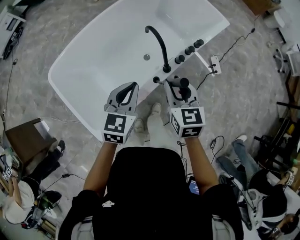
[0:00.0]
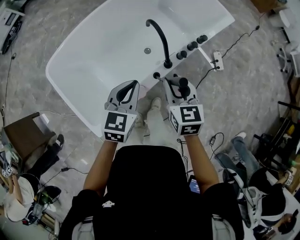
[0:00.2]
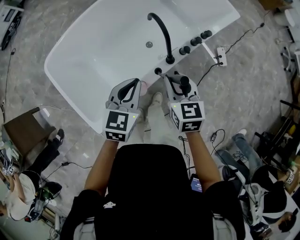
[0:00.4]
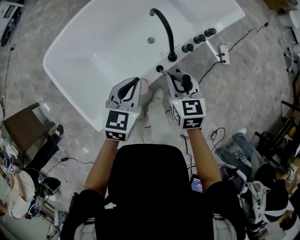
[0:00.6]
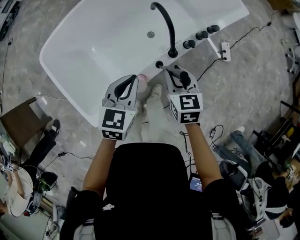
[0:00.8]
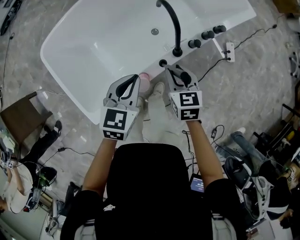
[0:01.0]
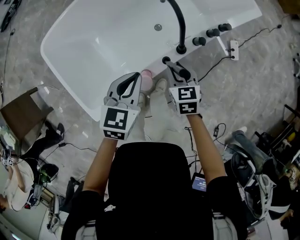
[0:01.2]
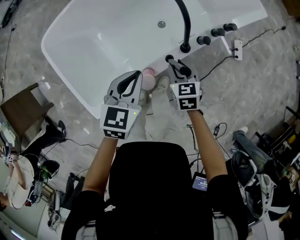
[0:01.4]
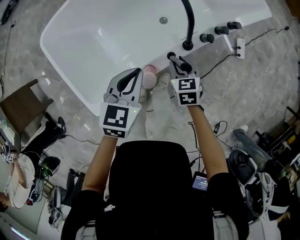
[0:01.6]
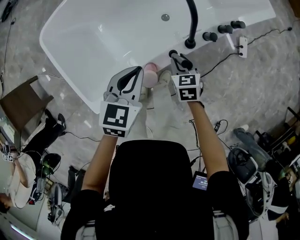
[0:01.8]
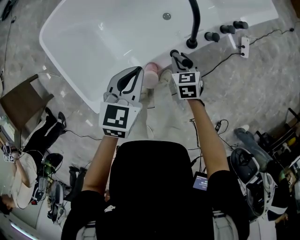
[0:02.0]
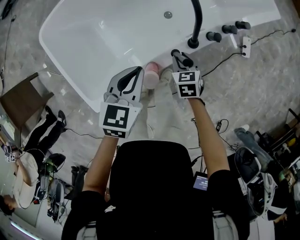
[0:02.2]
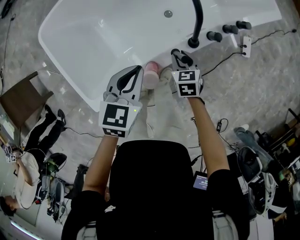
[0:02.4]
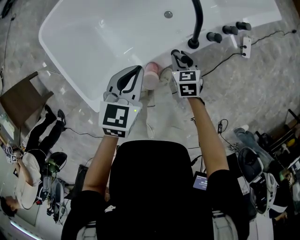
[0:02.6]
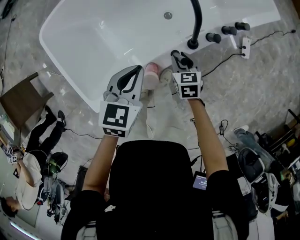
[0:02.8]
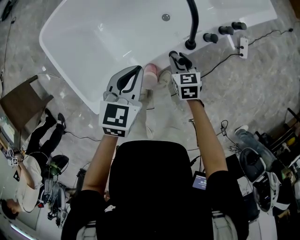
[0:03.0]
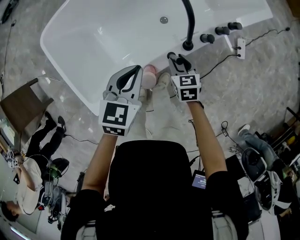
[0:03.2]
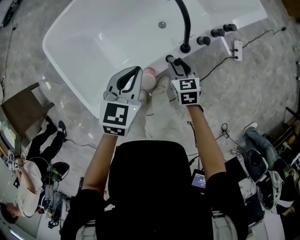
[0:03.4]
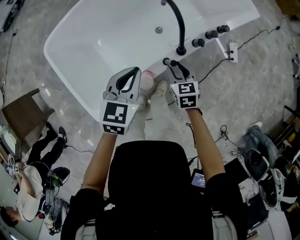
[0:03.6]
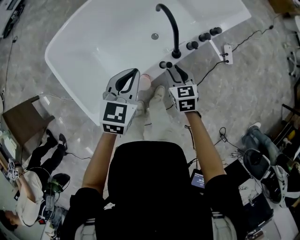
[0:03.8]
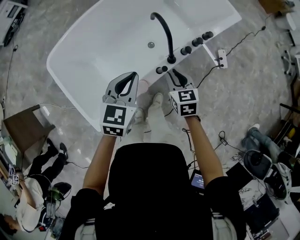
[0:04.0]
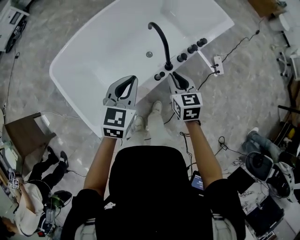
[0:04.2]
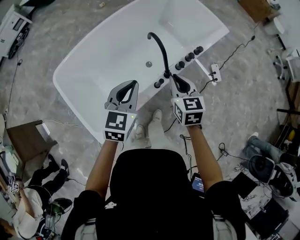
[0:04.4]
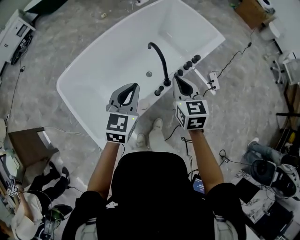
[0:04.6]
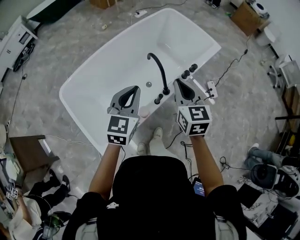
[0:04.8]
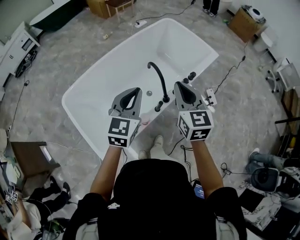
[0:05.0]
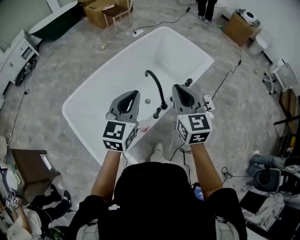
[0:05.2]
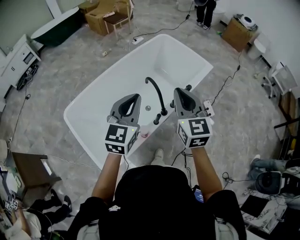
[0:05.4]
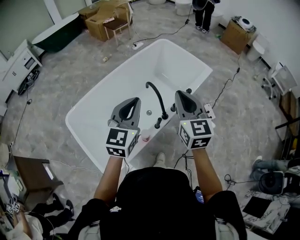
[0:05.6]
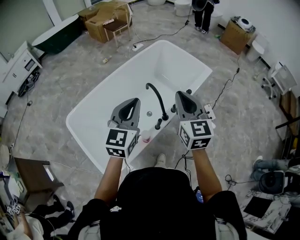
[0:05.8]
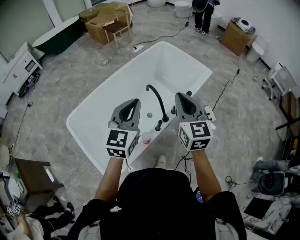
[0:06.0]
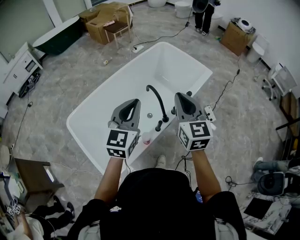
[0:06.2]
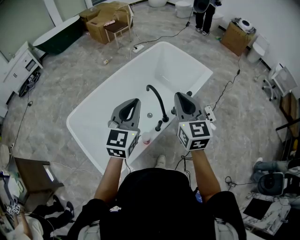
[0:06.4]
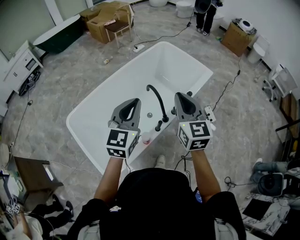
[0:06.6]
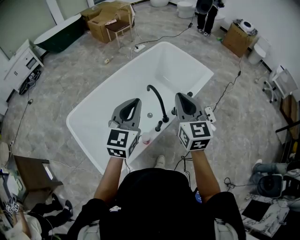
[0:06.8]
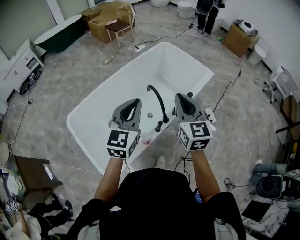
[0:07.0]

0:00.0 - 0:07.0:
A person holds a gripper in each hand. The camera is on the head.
0:00.0 - 0:01.4: The right gripper heads downward, covering about 25 cm, and swivels about 20 degrees; the left gripper is displaced downward by about 10 cm.
0:01.4 - 0:02.8: The right gripper is displaced downward by roughly 10 cm.
0:02.8 - 0:04.2: The right gripper travels upward by roughly 25 cm; the left gripper shifts approximately 15 cm upward.
0:04.2 - 0:05.6: The two grippers go about 25 cm upward. The left gripper changes its angle by about 20 degrees. The right gripper rotates some 30 degrees.
0:05.6 - 0:07.0: The grippers move only a little.

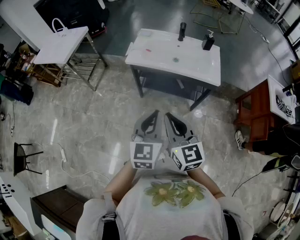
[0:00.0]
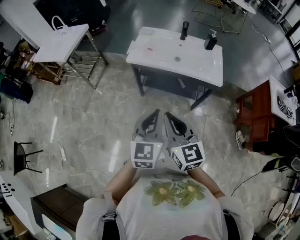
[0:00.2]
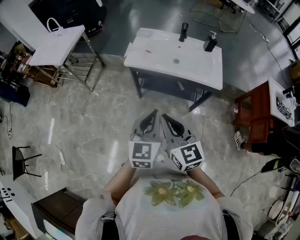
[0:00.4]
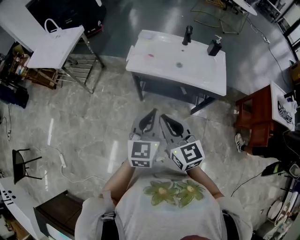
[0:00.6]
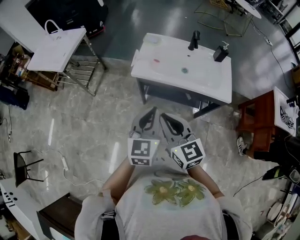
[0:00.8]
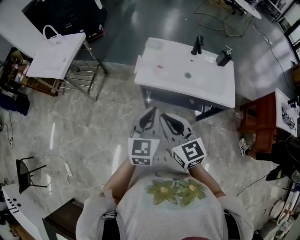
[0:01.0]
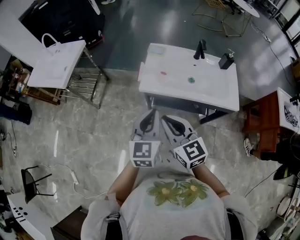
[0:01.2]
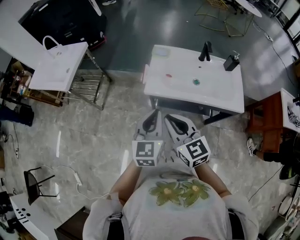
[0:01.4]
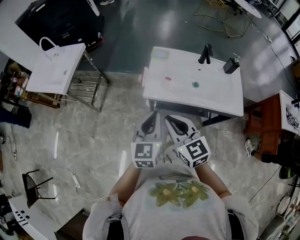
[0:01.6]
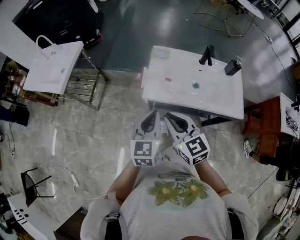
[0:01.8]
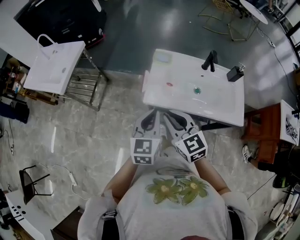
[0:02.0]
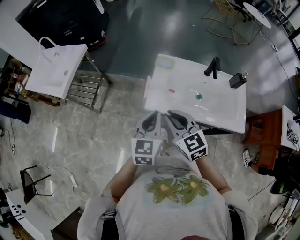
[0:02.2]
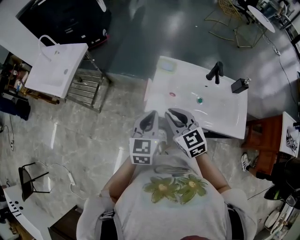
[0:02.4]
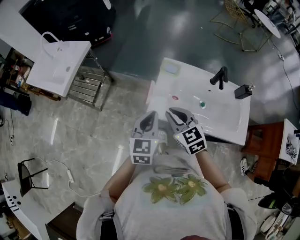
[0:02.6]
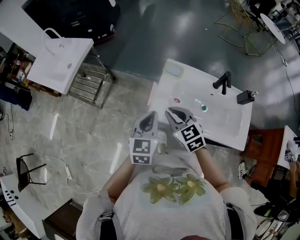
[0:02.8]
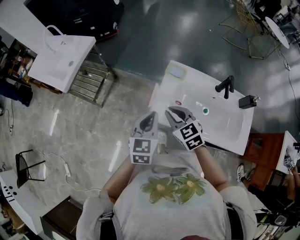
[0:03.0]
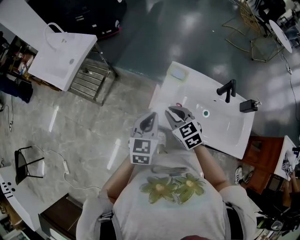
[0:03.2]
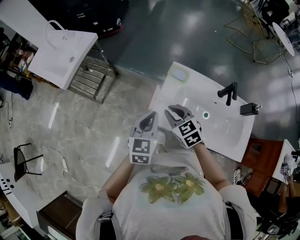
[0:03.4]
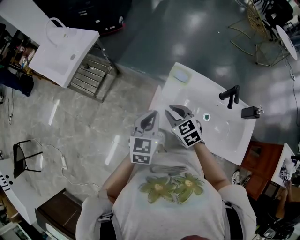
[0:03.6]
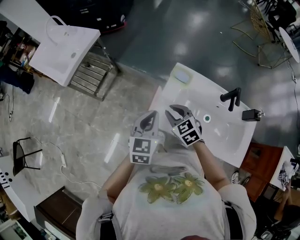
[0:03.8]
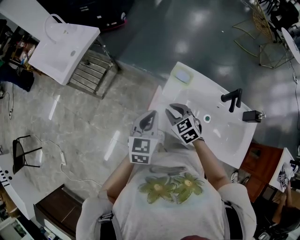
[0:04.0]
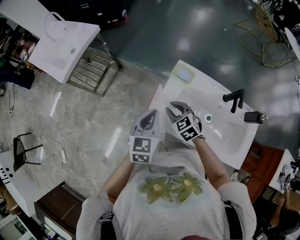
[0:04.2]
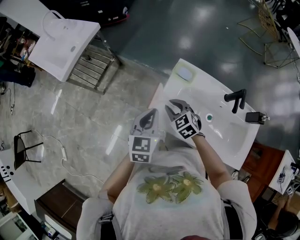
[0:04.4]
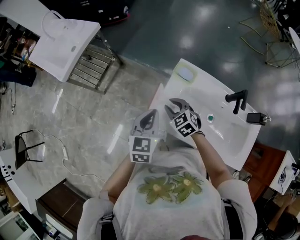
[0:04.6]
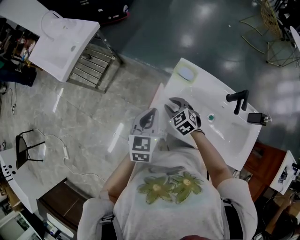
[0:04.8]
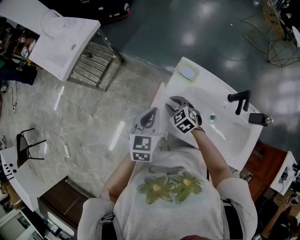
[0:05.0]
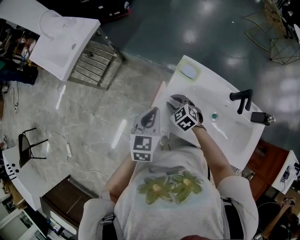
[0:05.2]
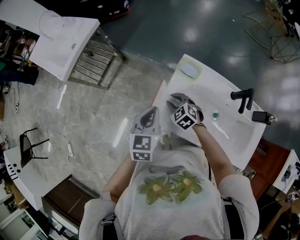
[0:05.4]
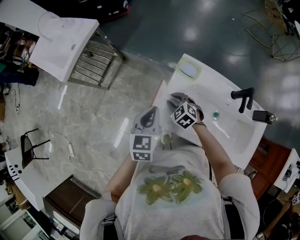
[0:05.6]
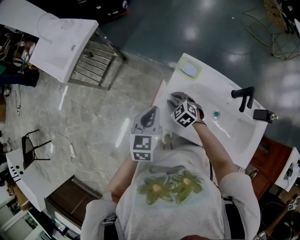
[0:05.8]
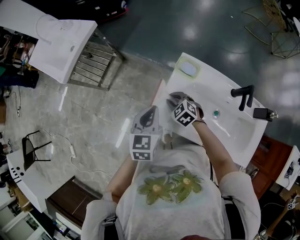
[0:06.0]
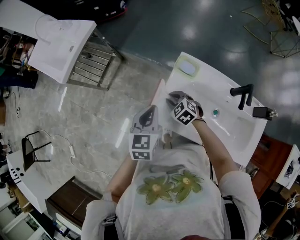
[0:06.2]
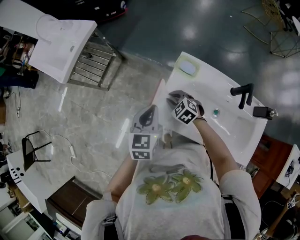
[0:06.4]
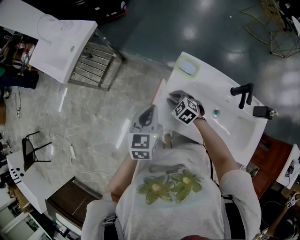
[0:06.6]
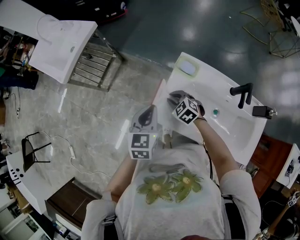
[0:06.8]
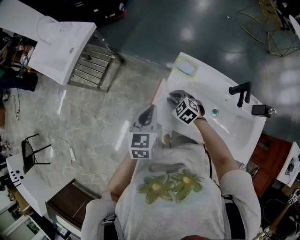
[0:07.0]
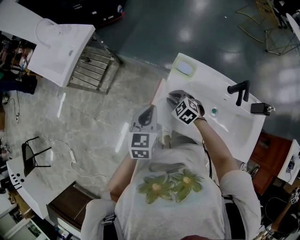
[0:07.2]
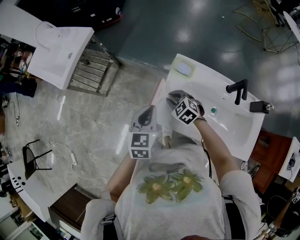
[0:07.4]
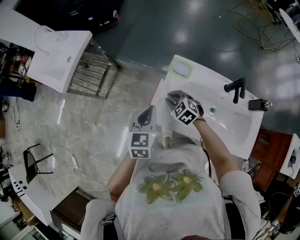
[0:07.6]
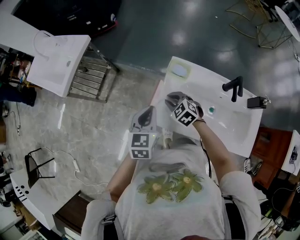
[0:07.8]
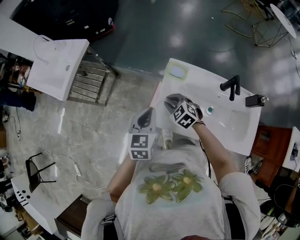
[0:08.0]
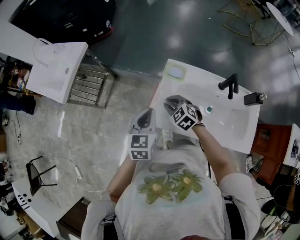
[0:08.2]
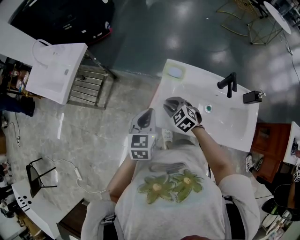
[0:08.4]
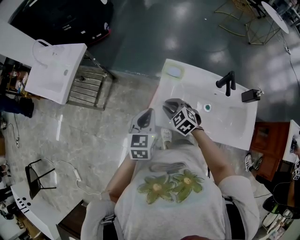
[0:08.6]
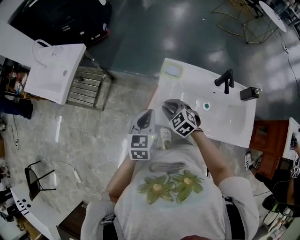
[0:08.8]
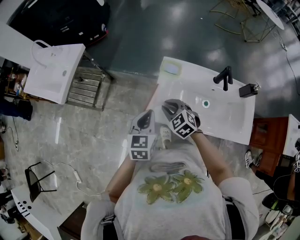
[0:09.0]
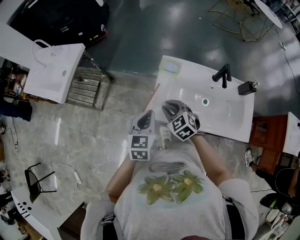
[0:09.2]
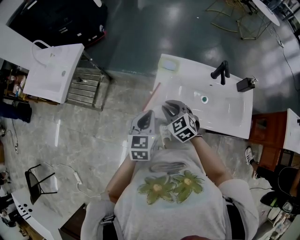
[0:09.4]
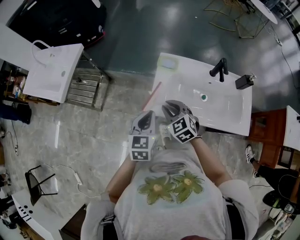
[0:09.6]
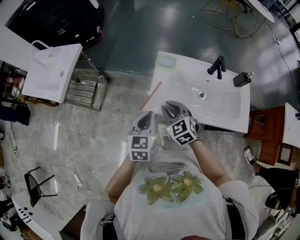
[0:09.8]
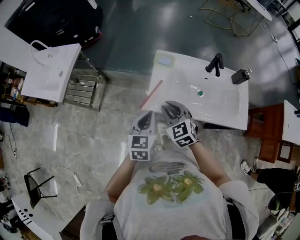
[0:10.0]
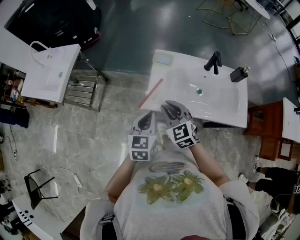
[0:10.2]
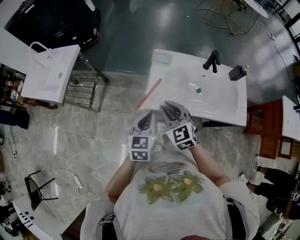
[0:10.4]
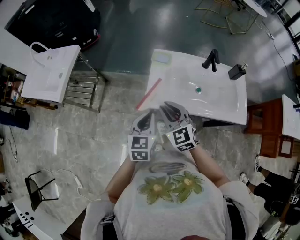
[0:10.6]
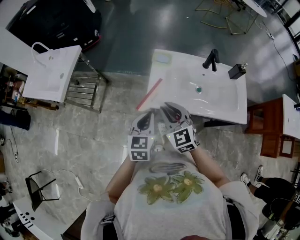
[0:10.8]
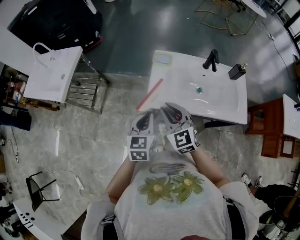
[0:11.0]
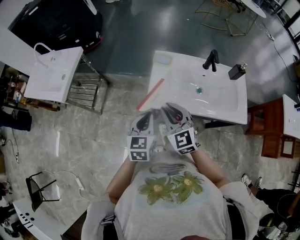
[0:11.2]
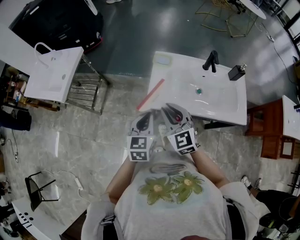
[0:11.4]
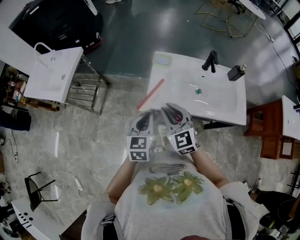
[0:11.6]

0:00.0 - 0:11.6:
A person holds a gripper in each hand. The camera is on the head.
0:00.0 - 0:01.4: The two grippers go some 30 cm forward and to the left.
0:01.4 - 0:02.8: The left gripper goes roughly 15 cm forward; the right gripper heads forward and downward, covering roughly 20 cm, and rotates about 20 degrees.
0:02.8 - 0:04.4: The right gripper shifts roughly 15 cm downward and forward. Meanwhile the left gripper goes some 5 cm forward.
0:04.4 - 0:05.8: The right gripper goes about 5 cm downward.
0:05.8 - 0:07.2: There are only small adjustments of the grippers.
0:07.2 - 0:08.8: The right gripper heads upward, covering about 10 cm.
0:08.8 - 0:10.2: The left gripper travels backward by roughly 10 cm. Meanwhile the right gripper travels backward and upward by some 15 cm, and swivels approximately 20 degrees.
0:10.2 - 0:11.6: The right gripper changes place by some 5 cm.

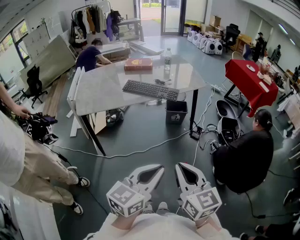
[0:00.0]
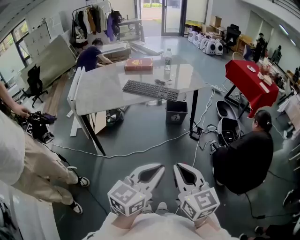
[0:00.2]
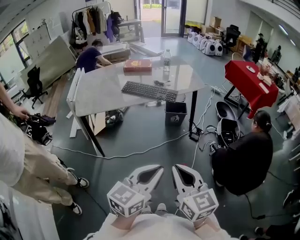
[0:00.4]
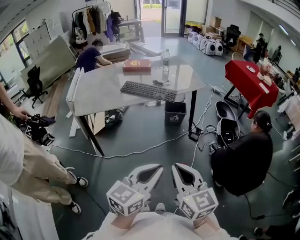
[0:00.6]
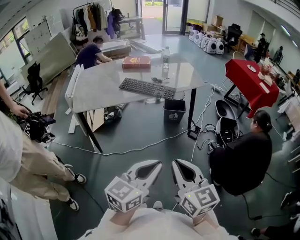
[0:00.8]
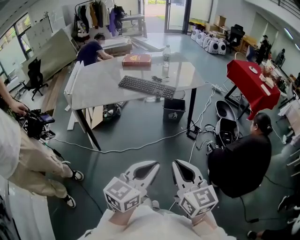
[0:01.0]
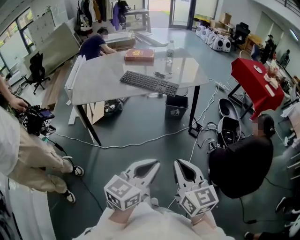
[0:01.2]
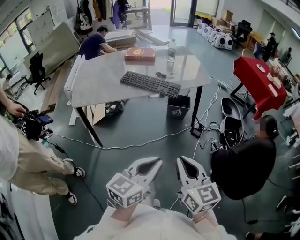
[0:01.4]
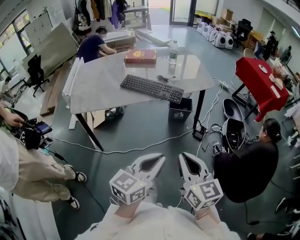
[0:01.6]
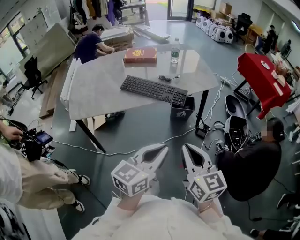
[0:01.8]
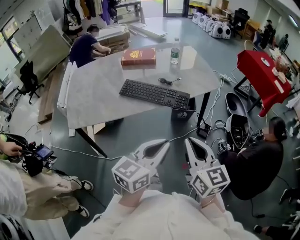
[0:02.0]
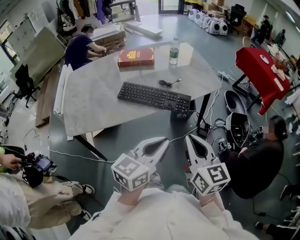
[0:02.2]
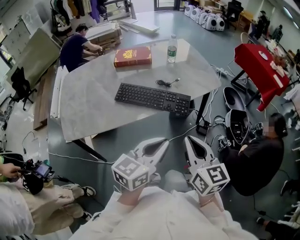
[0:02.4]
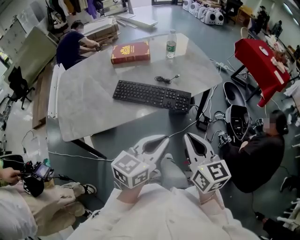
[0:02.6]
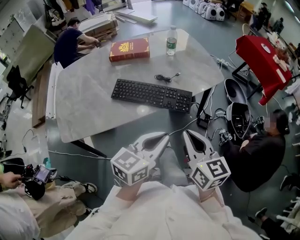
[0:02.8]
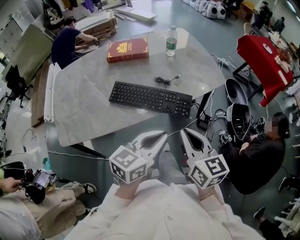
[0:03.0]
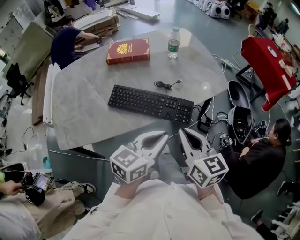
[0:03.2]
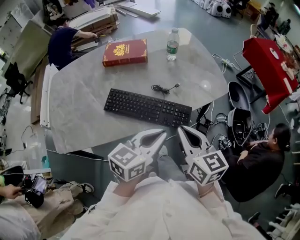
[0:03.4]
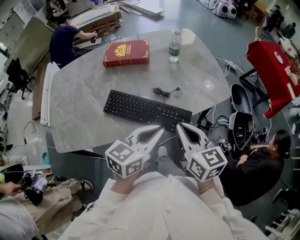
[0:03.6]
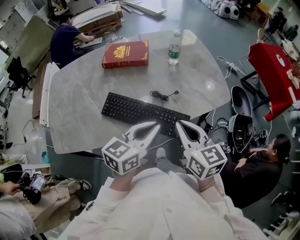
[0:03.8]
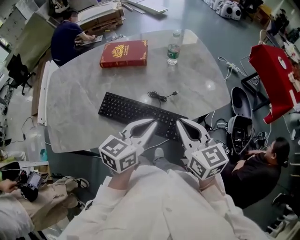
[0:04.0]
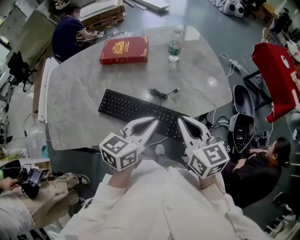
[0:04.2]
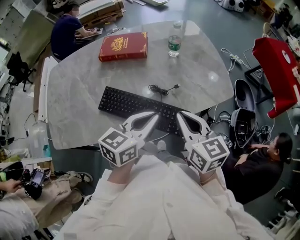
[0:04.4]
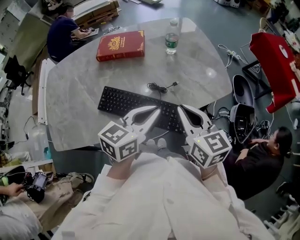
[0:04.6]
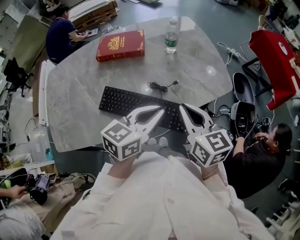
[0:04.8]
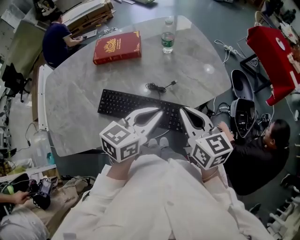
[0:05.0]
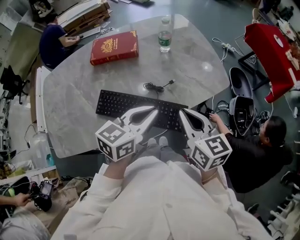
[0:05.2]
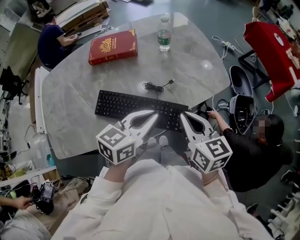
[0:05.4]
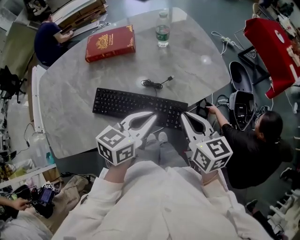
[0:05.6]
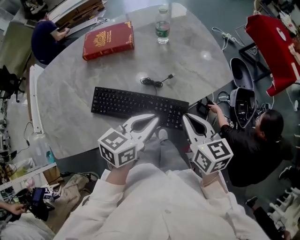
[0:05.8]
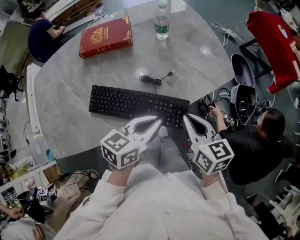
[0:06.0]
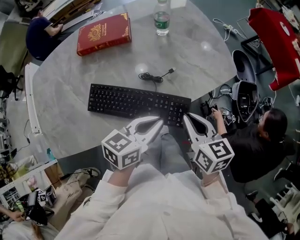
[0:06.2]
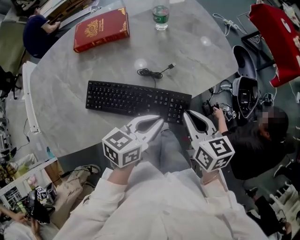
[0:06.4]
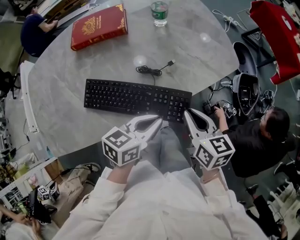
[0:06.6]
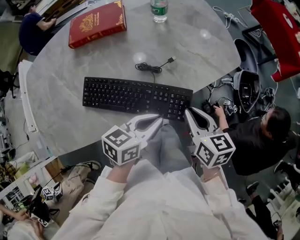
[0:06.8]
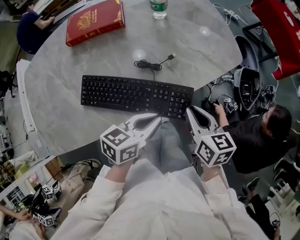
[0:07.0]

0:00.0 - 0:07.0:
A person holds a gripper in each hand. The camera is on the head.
0:00.0 - 0:01.4: Both grippers travel together forward, roughly 10 cm.
0:01.4 - 0:02.8: The two grippers go approximately 35 cm forward and to the left.
0:02.8 - 0:04.2: Both grippers travel together forward, some 20 cm.
0:04.2 - 0:05.6: The grippers stay close to where they were, moving slightly.
0:05.6 - 0:07.0: The two grippers go approximately 10 cm downward.
